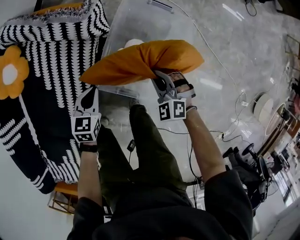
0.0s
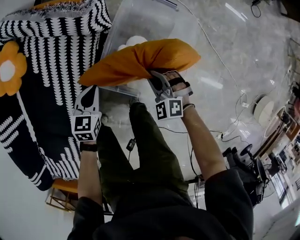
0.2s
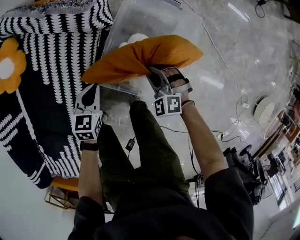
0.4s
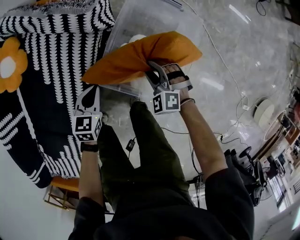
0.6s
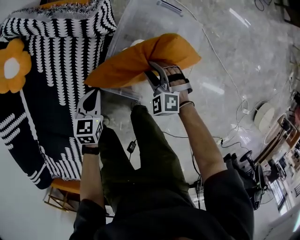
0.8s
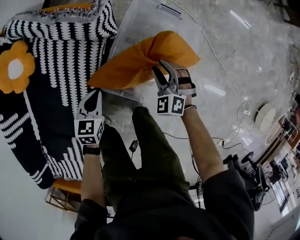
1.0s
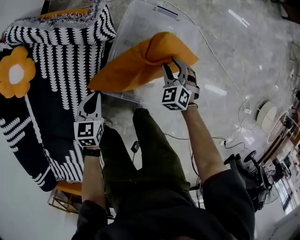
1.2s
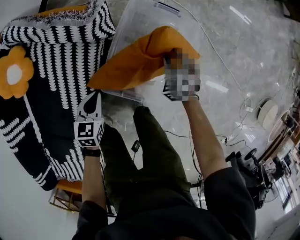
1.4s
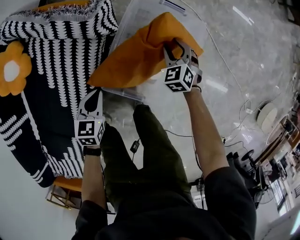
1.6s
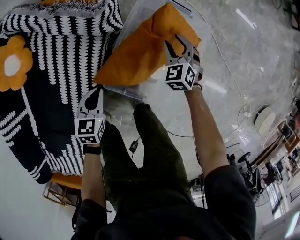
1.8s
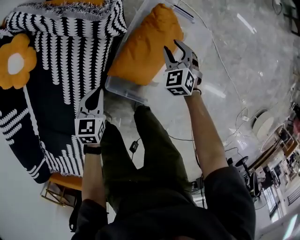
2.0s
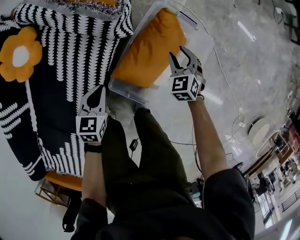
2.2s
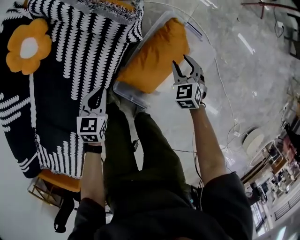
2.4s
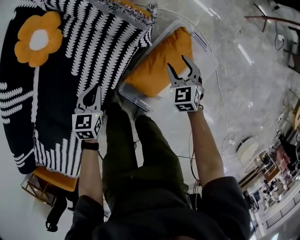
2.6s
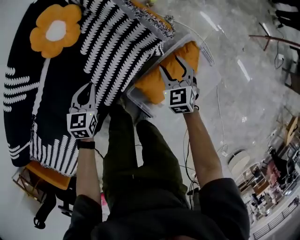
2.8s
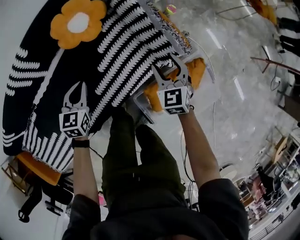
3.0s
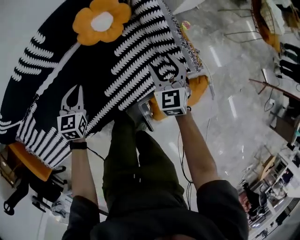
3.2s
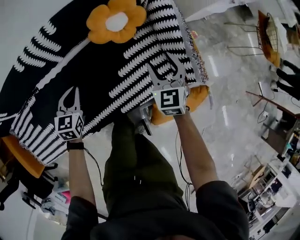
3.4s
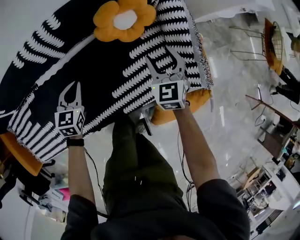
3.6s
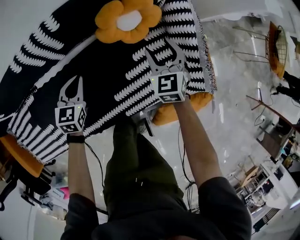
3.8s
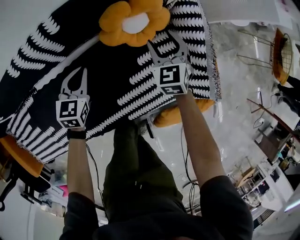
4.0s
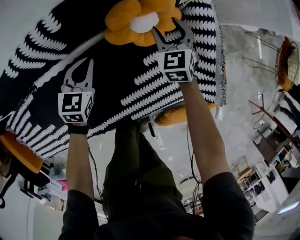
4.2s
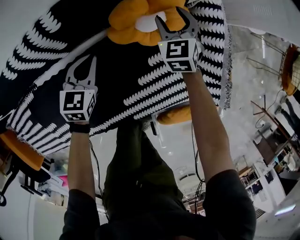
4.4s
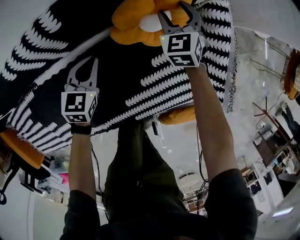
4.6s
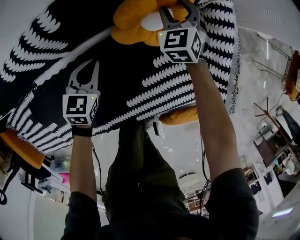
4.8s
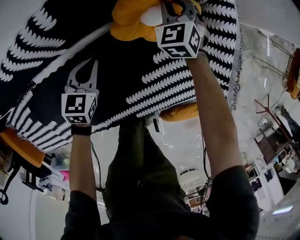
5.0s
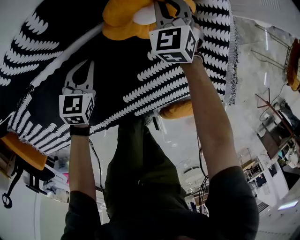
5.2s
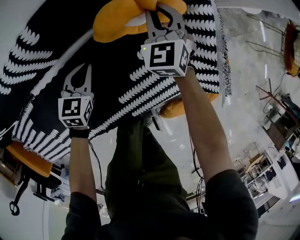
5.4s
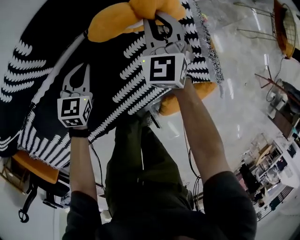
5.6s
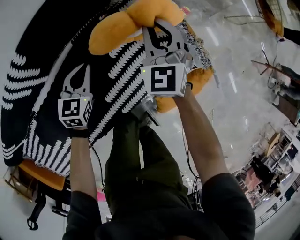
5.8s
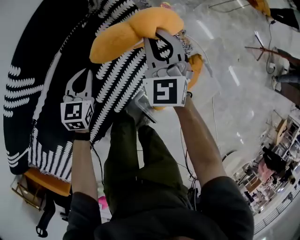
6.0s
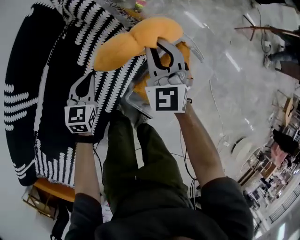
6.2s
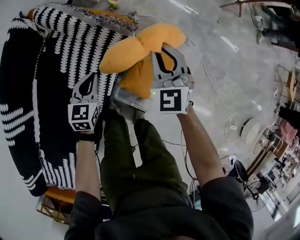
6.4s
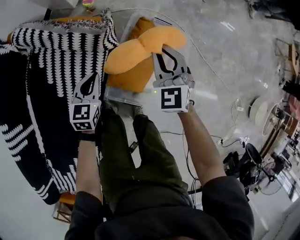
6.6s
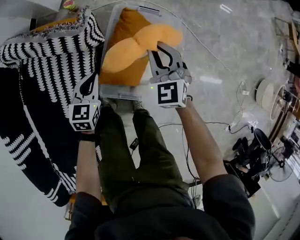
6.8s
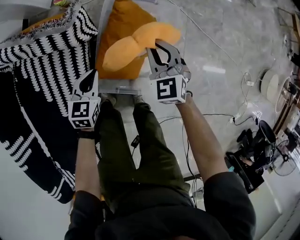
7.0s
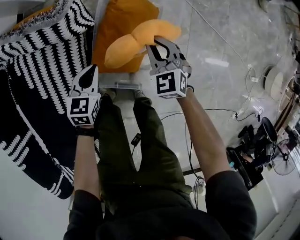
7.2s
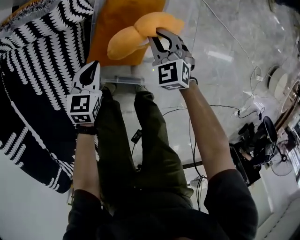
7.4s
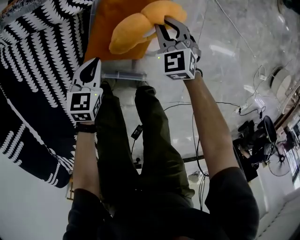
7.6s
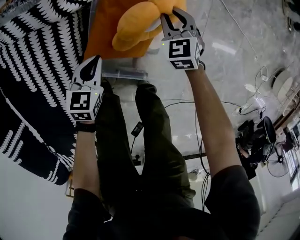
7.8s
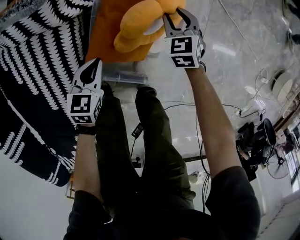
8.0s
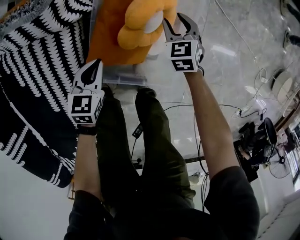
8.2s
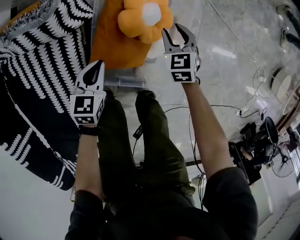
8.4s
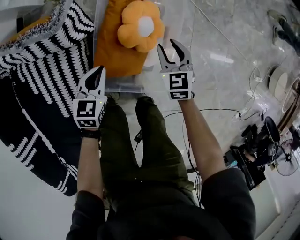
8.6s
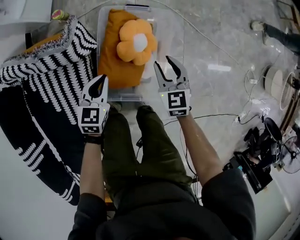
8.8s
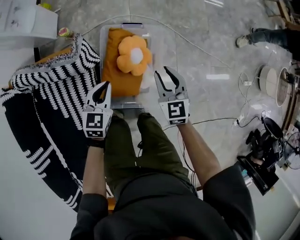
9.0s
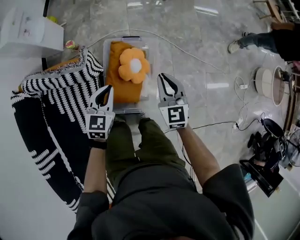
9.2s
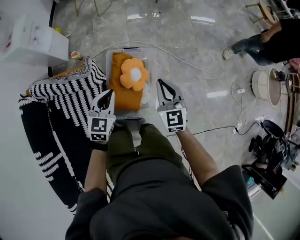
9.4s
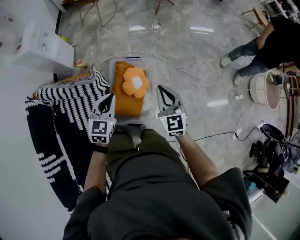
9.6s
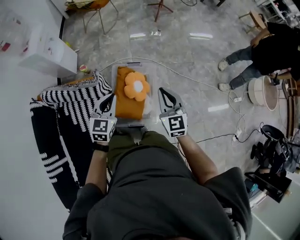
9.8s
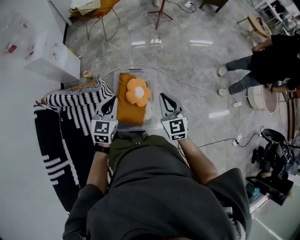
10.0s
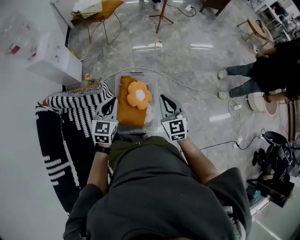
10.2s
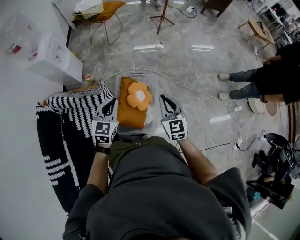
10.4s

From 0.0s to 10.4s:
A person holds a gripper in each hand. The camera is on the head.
From 0.0s to 1.4s: The right gripper travels forward, to the right and downward by roughly 15 cm, and turns by about 30 degrees.
From 1.4s to 3.0s: The right gripper shifts by roughly 50 cm, and swivels about 40 degrees. The left gripper changes place by about 35 cm, and rotates roughly 40 degrees.
From 3.0s to 4.4s: The left gripper is displaced to the left, forward and downward by some 25 cm. The right gripper shifts approximately 40 cm forward and to the left.
From 4.4s to 6.0s: The right gripper travels to the right, upward and backward by roughly 40 cm, turns by approximately 30 degrees, and closes up. The left gripper moves to the right, about 25 cm, and rotates about 20 degrees.
From 6.0s to 7.4s: The right gripper moves about 50 cm, and rotates roughly 40 degrees; the left gripper ends up roughly 40 cm from where it was, and changes its angle by about 40 degrees.
From 7.4s to 9.0s: The grippers both shift upward by some 25 cm. The right gripper changes its angle by some 30 degrees.
From 9.0s to 10.4s: Both grippers travel together upward, roughly 30 cm.

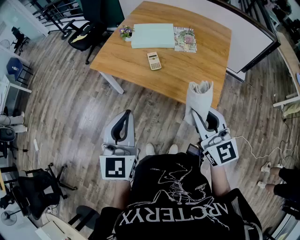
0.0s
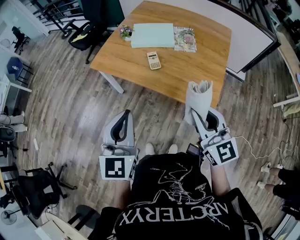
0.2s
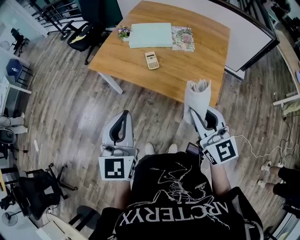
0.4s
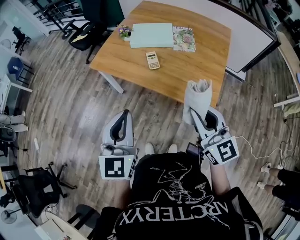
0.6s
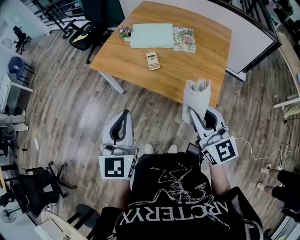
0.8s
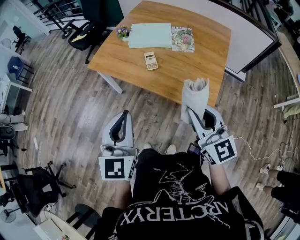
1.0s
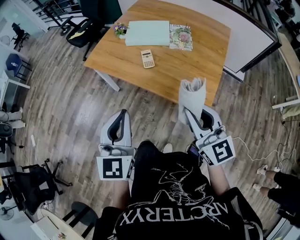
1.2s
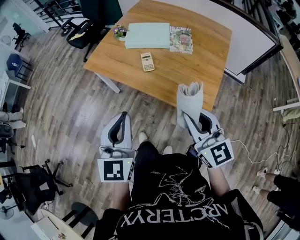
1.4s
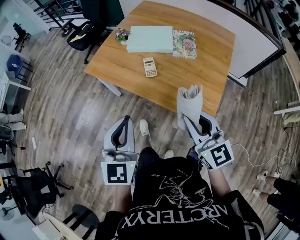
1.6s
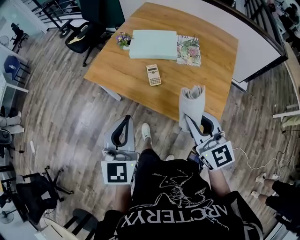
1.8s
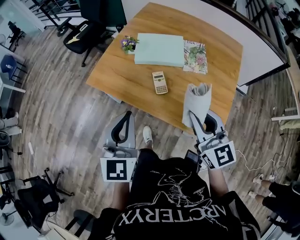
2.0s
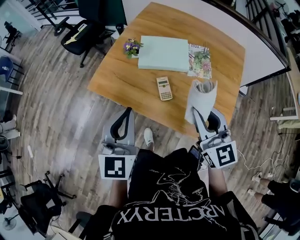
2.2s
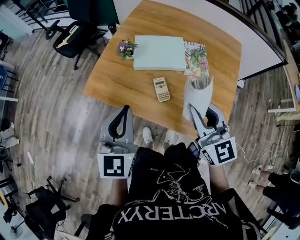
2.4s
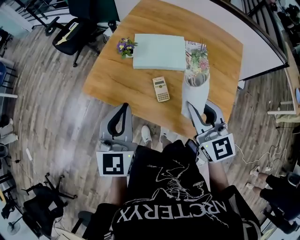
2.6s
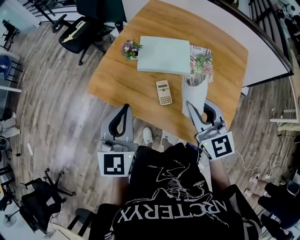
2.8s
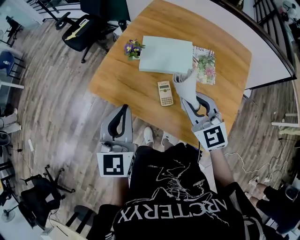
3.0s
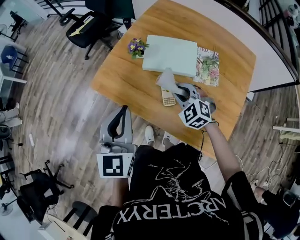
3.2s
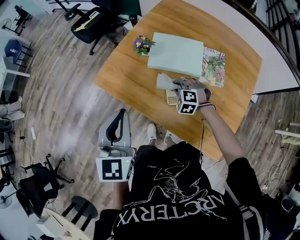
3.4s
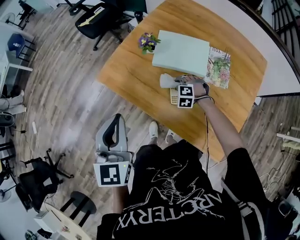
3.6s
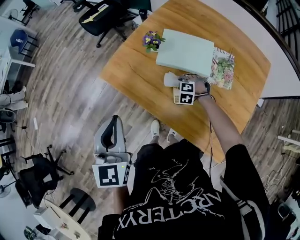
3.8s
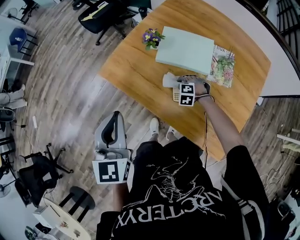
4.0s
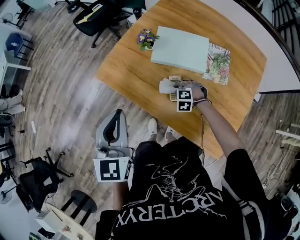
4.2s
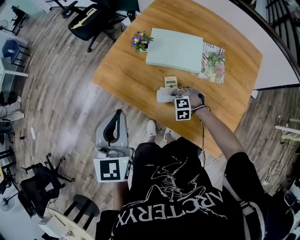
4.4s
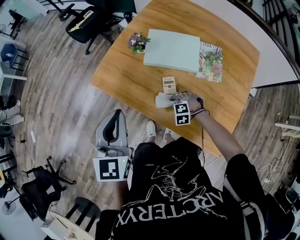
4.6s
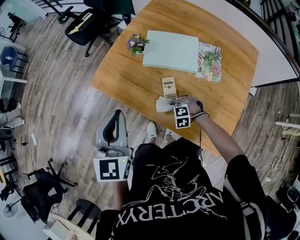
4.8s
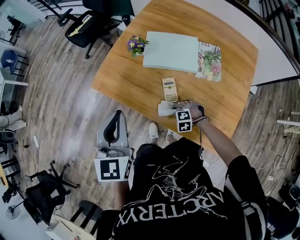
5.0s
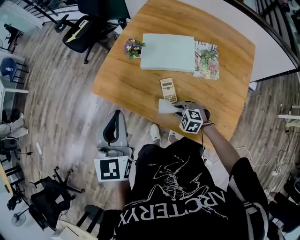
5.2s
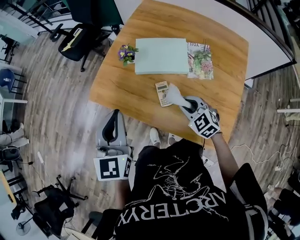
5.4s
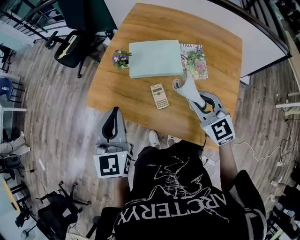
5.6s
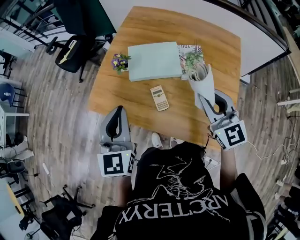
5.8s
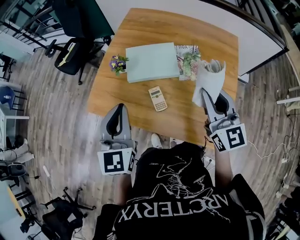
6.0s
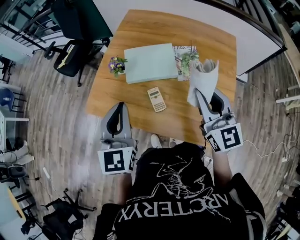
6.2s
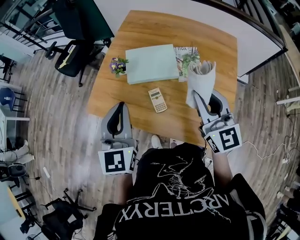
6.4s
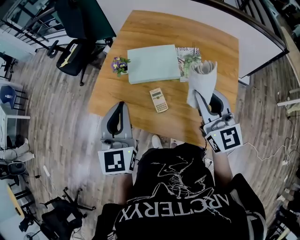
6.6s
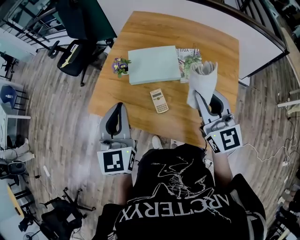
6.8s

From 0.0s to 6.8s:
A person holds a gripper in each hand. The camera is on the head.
From 0.0s to 1.4s: The left gripper is displaced to the right by roughly 5 cm.
From 1.4s to 2.8s: The grippers both shift forward by about 30 cm.
From 2.8s to 4.0s: The right gripper goes roughly 35 cm downward, and tilts its fingers some 60 degrees downward. Meanwhile the left gripper travels to the left by roughly 5 cm.
From 4.0s to 5.4s: The right gripper travels upward by about 20 cm, and rotates around the line of its fingers by approximately 40 degrees, clockwise from behind. Meanwhile the left gripper ends up some 5 cm from where it was.
From 5.4s to 6.8s: The right gripper travels upward by approximately 25 cm, and tips its fingers upward by about 40 degrees. The left gripper shifts approximately 5 cm to the right.

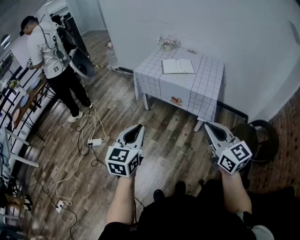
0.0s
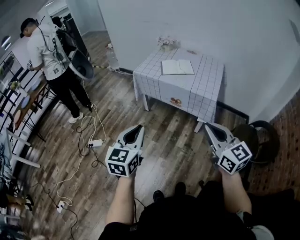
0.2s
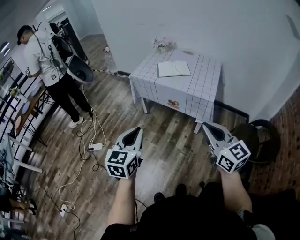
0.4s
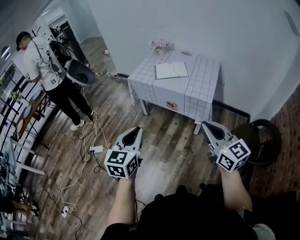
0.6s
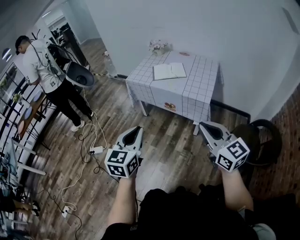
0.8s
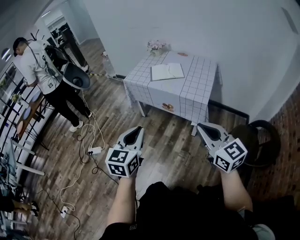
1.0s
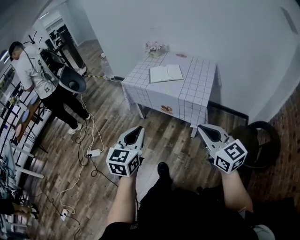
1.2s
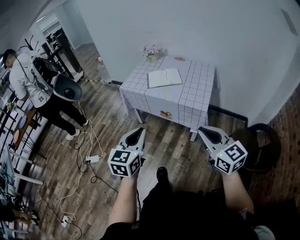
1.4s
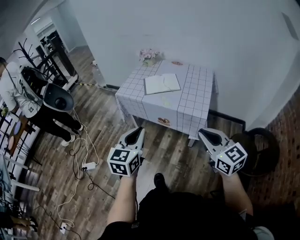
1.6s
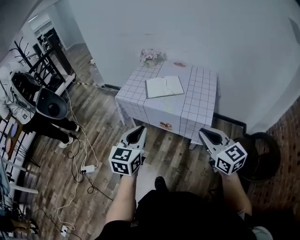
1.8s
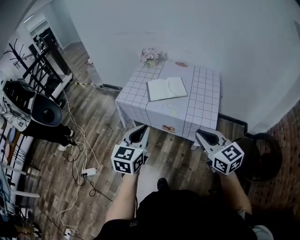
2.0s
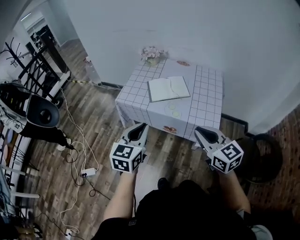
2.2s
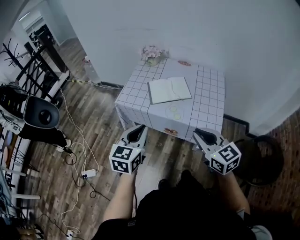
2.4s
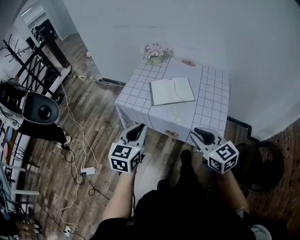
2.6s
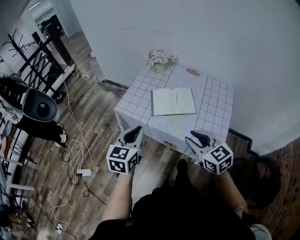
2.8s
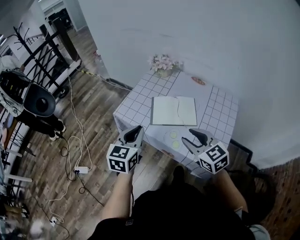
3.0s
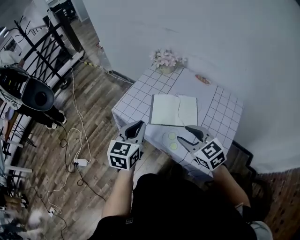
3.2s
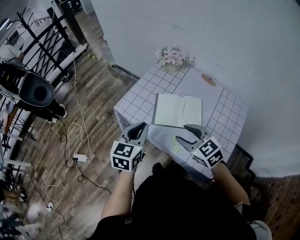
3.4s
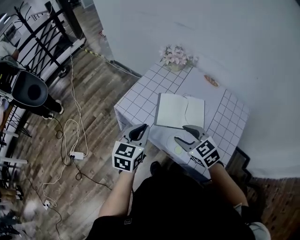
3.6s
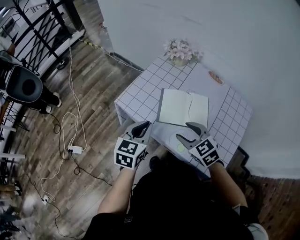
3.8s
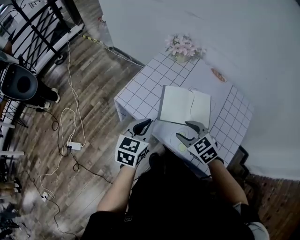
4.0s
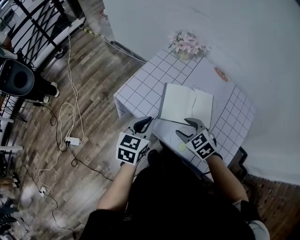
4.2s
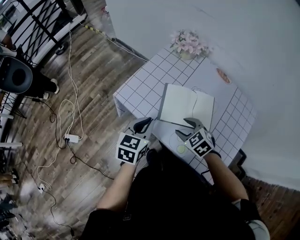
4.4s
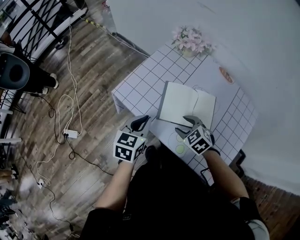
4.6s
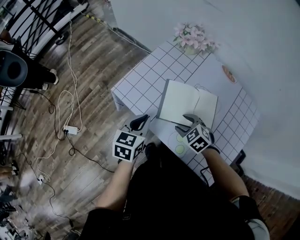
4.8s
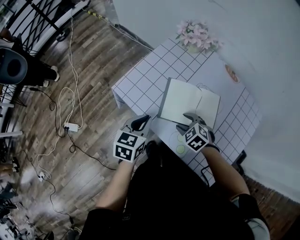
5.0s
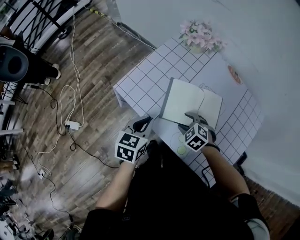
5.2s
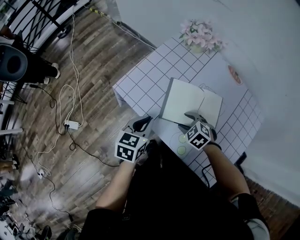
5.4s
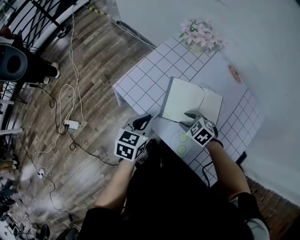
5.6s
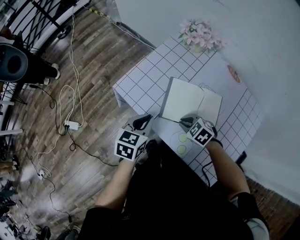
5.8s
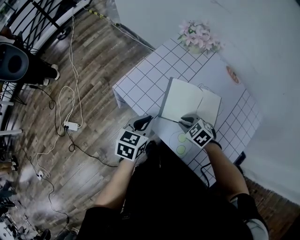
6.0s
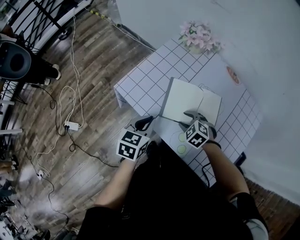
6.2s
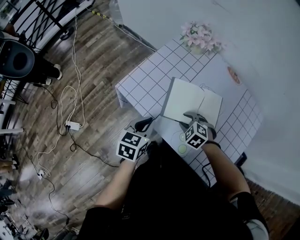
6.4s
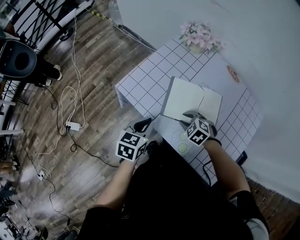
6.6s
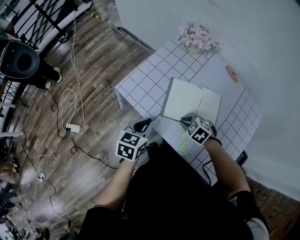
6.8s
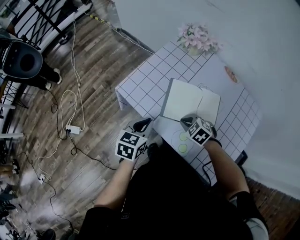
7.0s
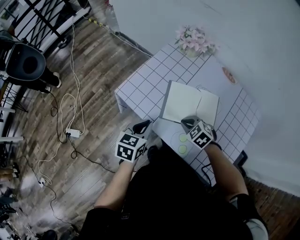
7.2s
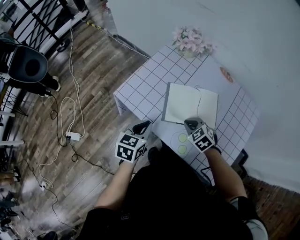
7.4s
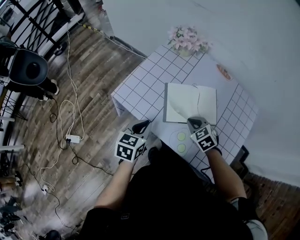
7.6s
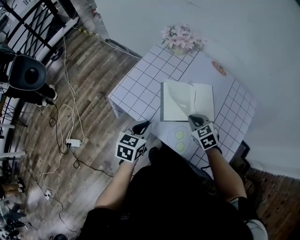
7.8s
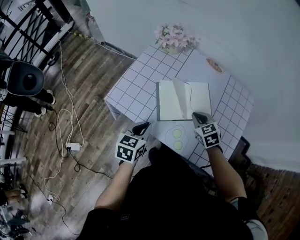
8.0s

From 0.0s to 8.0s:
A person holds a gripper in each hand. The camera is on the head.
From 0.0s to 1.6s: The grippers both shift forward and to the right by about 20 cm.
From 1.6s to 3.2s: The two grippers travel together, forward, about 40 cm. The right gripper rotates roughly 30 degrees, and opens up.
From 3.2s to 4.8s: Both grippers travel together downward and forward, approximately 20 cm. The right gripper tilts its fingers approximately 30 degrees downward.
From 4.8s to 6.4s: The grippers move only a little.
From 6.4s to 8.0s: The right gripper shifts by approximately 15 cm, swivels approximately 40 degrees, and closes.
